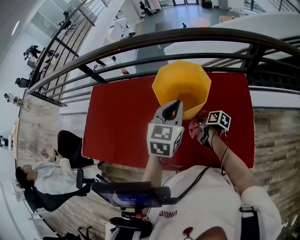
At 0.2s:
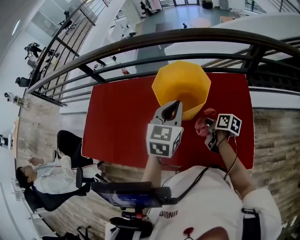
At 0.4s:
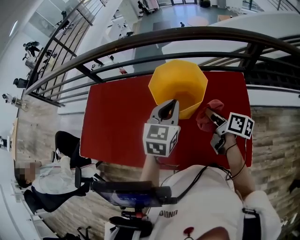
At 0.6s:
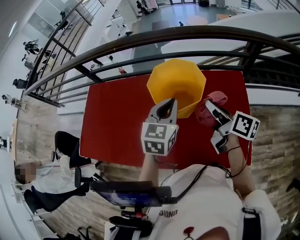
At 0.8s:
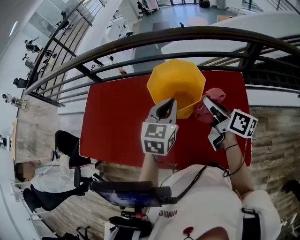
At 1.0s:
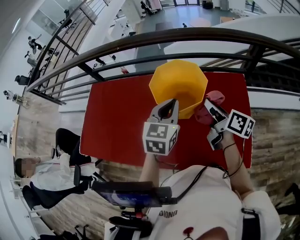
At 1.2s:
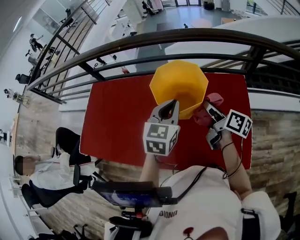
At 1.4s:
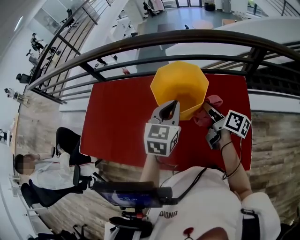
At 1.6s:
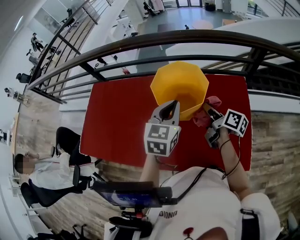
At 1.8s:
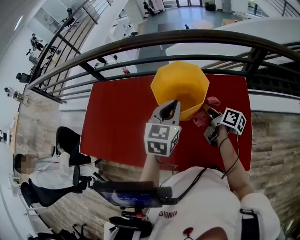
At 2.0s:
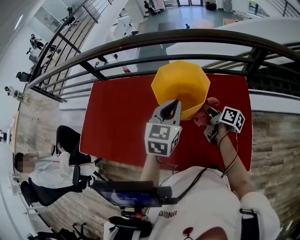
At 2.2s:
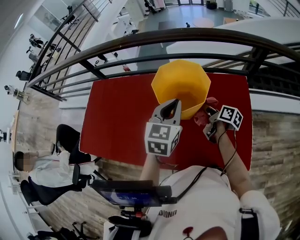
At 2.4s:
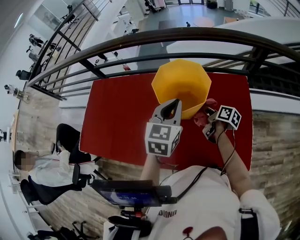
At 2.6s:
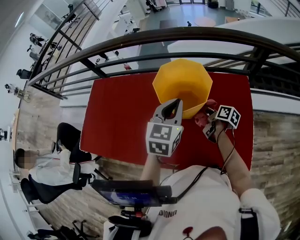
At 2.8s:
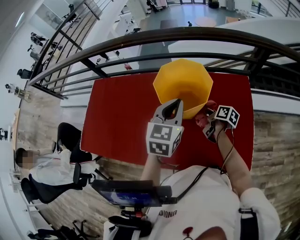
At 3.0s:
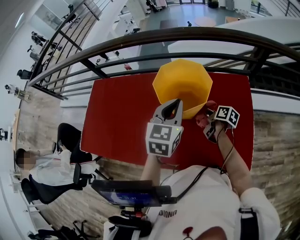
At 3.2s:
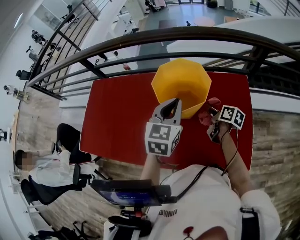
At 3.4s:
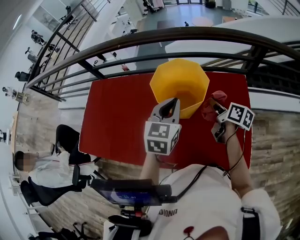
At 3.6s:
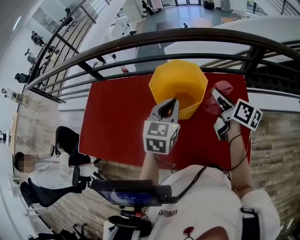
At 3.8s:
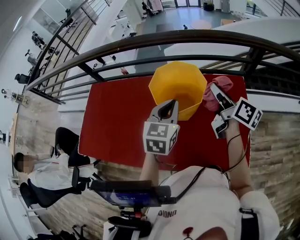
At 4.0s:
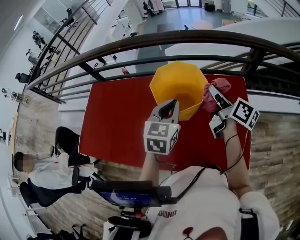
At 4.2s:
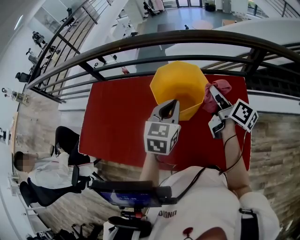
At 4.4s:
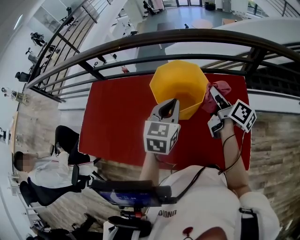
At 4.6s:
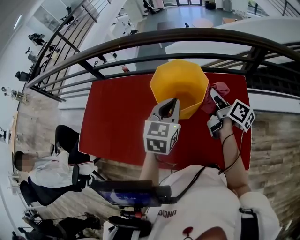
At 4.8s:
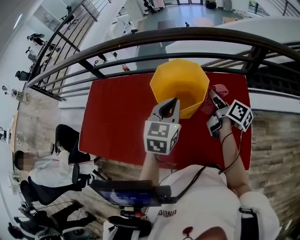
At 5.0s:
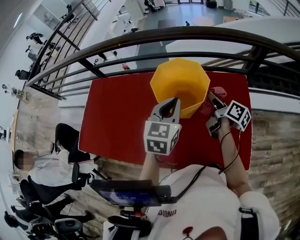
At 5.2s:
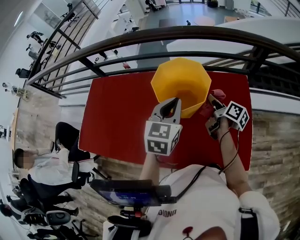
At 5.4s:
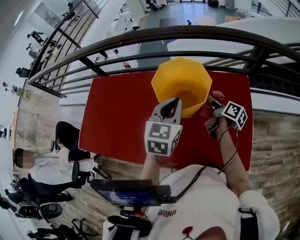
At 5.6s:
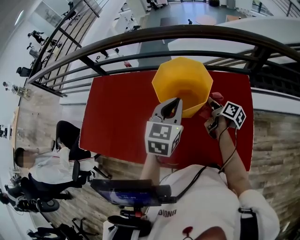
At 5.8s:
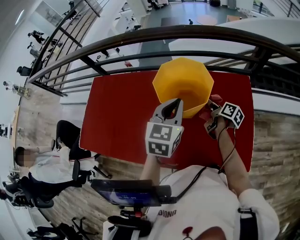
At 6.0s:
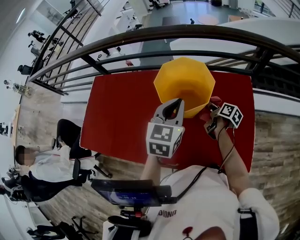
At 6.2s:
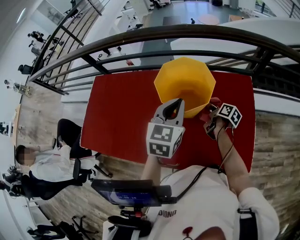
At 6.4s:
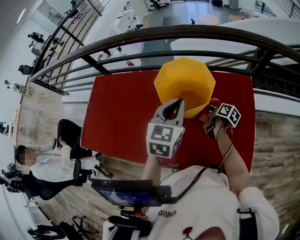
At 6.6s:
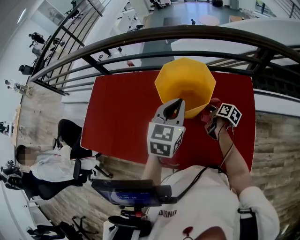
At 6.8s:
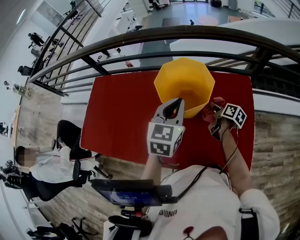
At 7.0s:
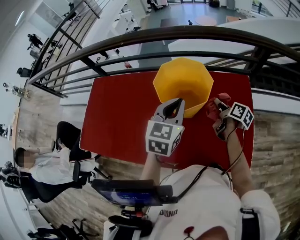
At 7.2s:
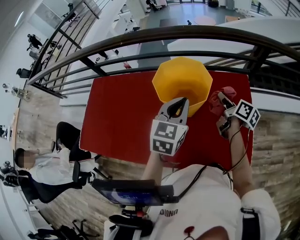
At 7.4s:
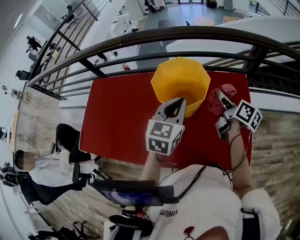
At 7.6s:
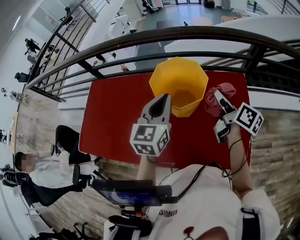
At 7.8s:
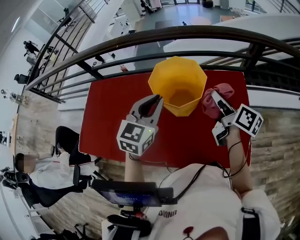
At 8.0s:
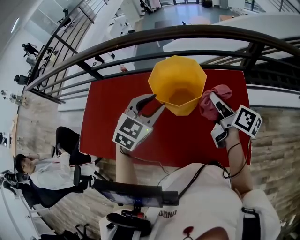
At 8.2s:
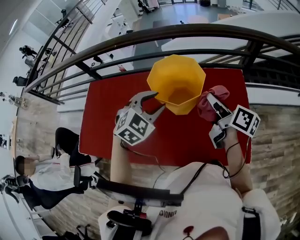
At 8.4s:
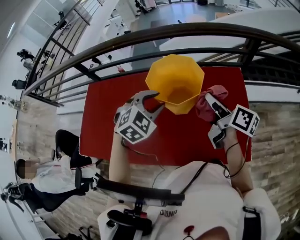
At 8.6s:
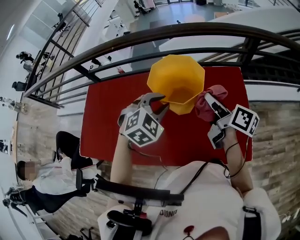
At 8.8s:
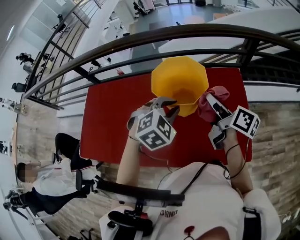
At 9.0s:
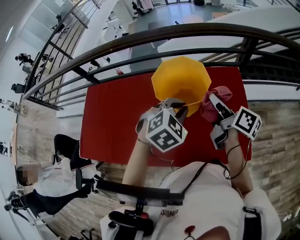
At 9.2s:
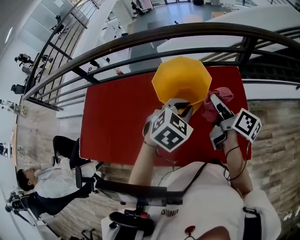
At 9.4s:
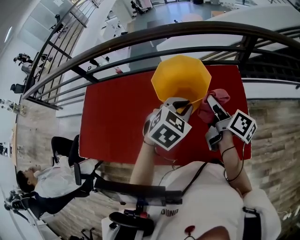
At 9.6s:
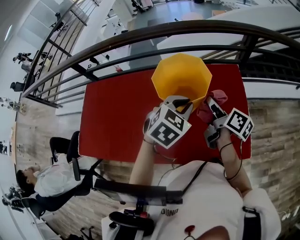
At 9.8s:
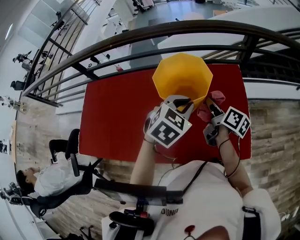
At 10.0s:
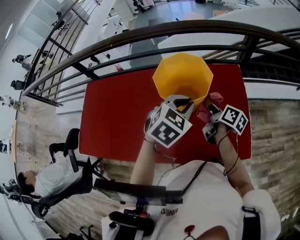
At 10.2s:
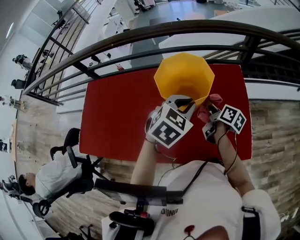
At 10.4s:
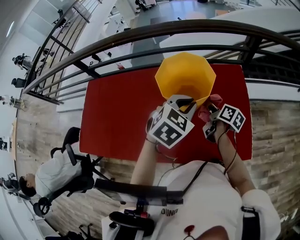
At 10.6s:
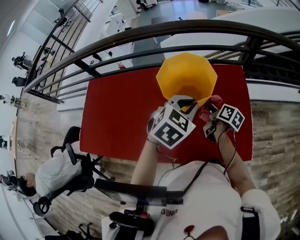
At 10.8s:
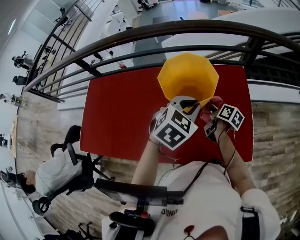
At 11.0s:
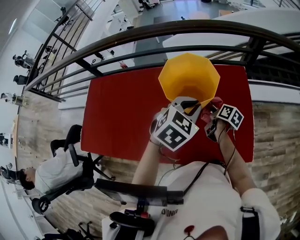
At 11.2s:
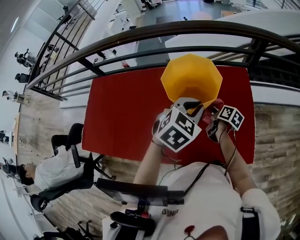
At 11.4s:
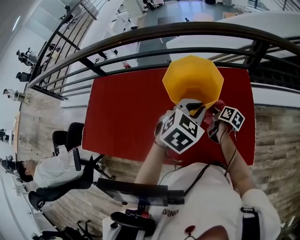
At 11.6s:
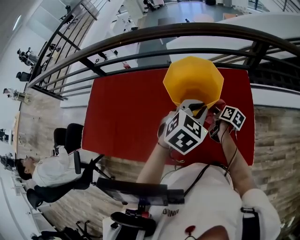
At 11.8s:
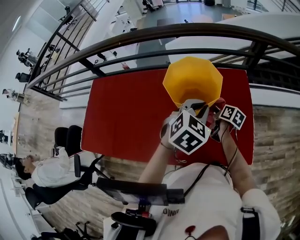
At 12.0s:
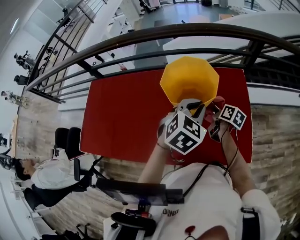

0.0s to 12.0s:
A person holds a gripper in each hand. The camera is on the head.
0.0s to 1.6s: The right gripper moves upward, some 15 cm, and changes its angle by roughly 30 degrees.
1.6s to 3.0s: The right gripper heads downward, covering roughly 15 cm.
3.0s to 4.4s: The right gripper travels upward by some 20 cm, and turns by about 30 degrees.
4.4s to 6.0s: The right gripper goes approximately 20 cm downward, and rotates about 30 degrees.
6.0s to 7.6s: The right gripper moves upward, about 20 cm, and turns by roughly 30 degrees.
7.6s to 9.0s: The left gripper is displaced to the right and downward by roughly 10 cm, tips its fingers downward by roughly 40 degrees, and opens and closes again.
9.0s to 10.4s: The right gripper goes approximately 15 cm downward.

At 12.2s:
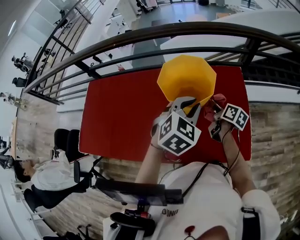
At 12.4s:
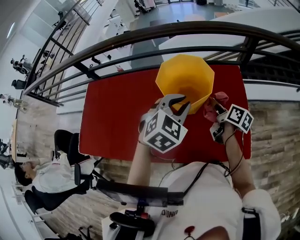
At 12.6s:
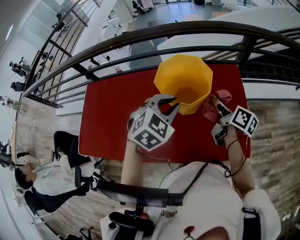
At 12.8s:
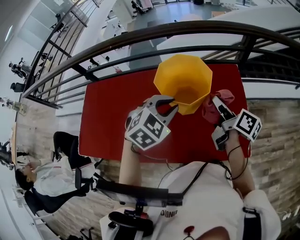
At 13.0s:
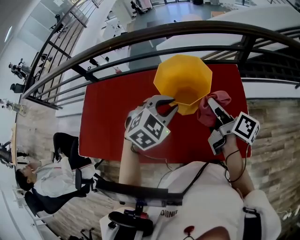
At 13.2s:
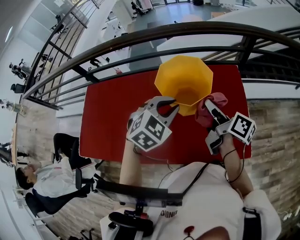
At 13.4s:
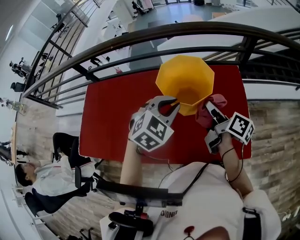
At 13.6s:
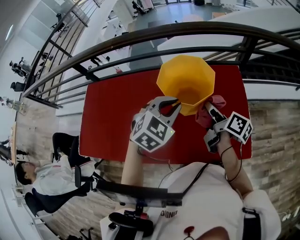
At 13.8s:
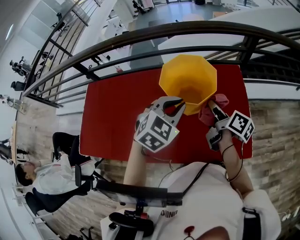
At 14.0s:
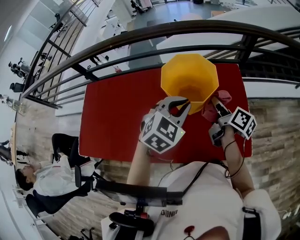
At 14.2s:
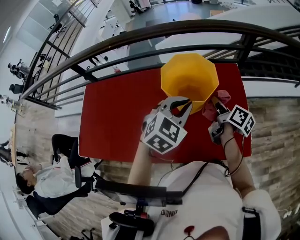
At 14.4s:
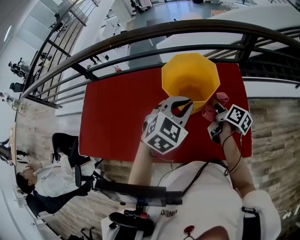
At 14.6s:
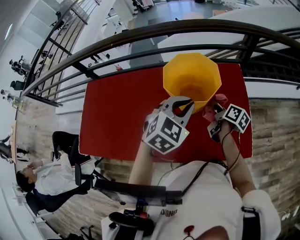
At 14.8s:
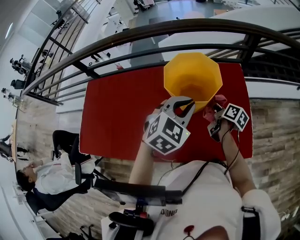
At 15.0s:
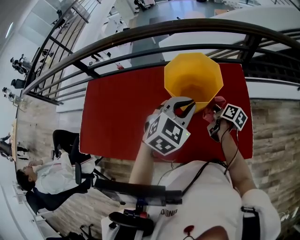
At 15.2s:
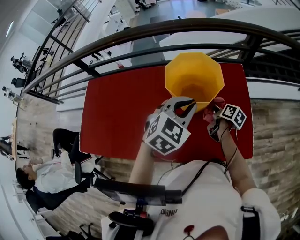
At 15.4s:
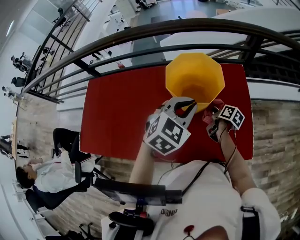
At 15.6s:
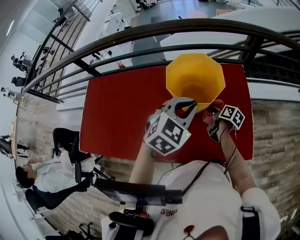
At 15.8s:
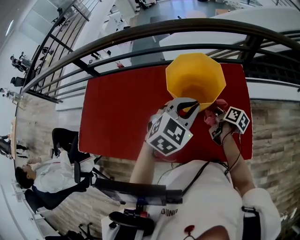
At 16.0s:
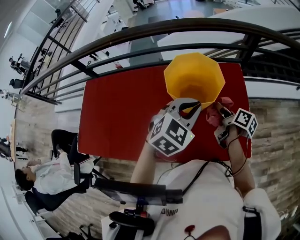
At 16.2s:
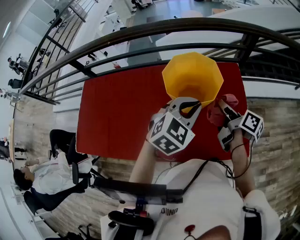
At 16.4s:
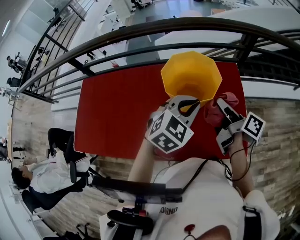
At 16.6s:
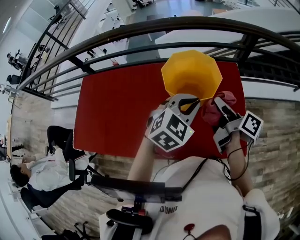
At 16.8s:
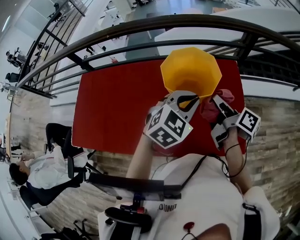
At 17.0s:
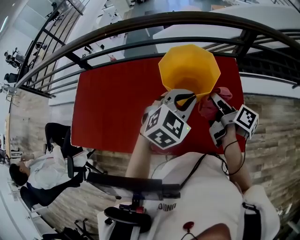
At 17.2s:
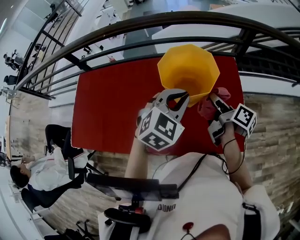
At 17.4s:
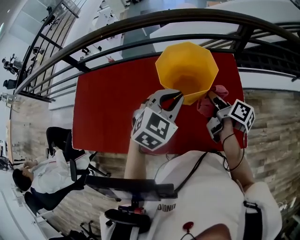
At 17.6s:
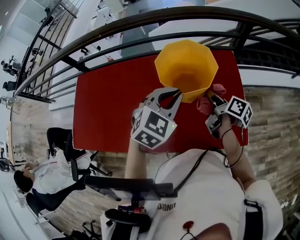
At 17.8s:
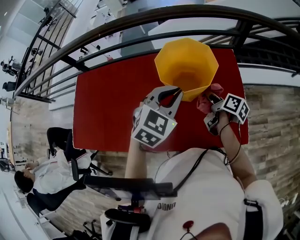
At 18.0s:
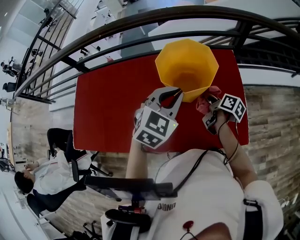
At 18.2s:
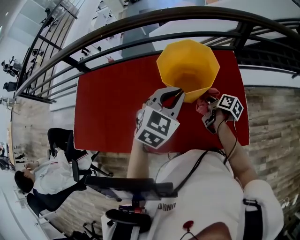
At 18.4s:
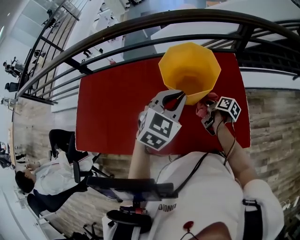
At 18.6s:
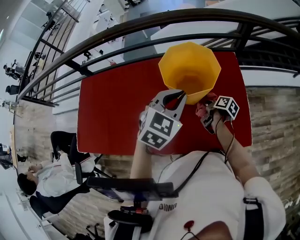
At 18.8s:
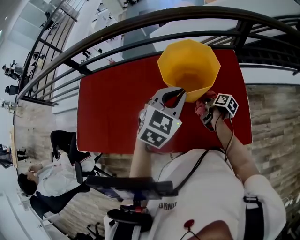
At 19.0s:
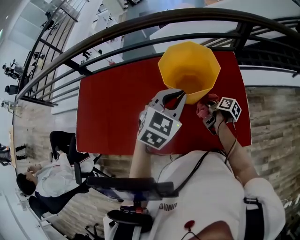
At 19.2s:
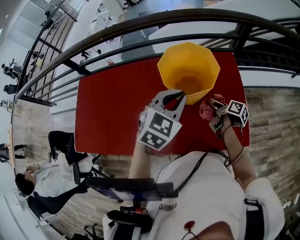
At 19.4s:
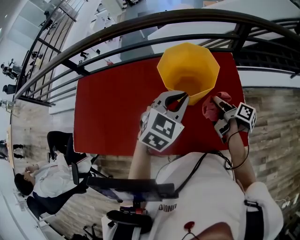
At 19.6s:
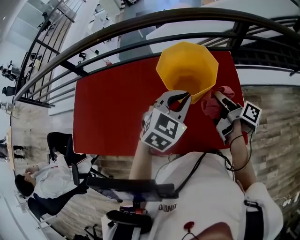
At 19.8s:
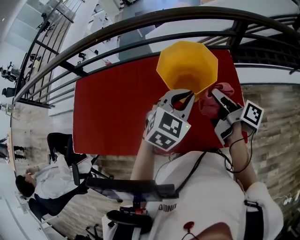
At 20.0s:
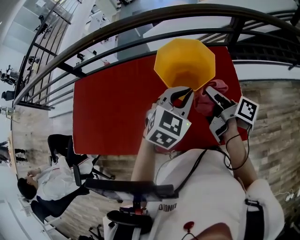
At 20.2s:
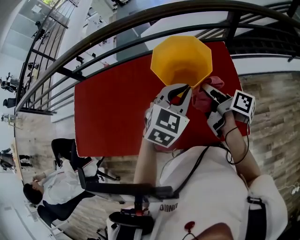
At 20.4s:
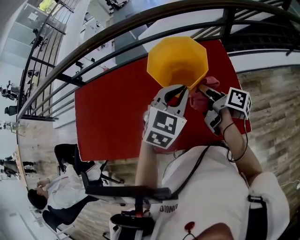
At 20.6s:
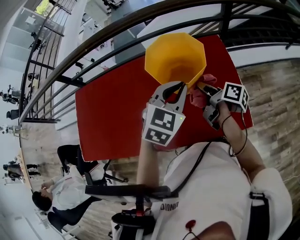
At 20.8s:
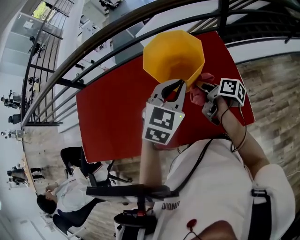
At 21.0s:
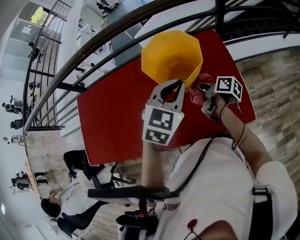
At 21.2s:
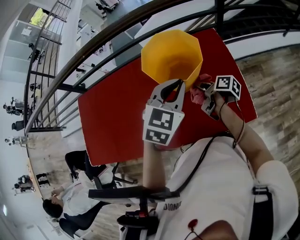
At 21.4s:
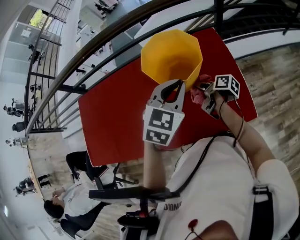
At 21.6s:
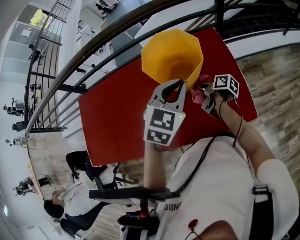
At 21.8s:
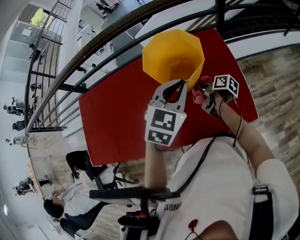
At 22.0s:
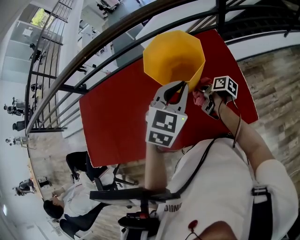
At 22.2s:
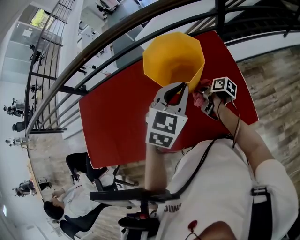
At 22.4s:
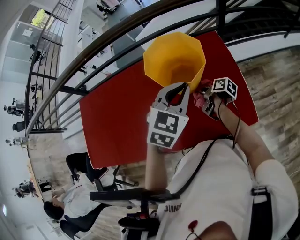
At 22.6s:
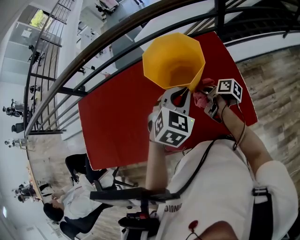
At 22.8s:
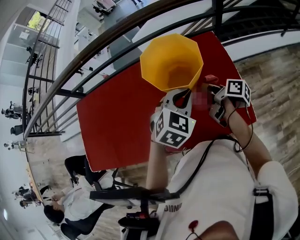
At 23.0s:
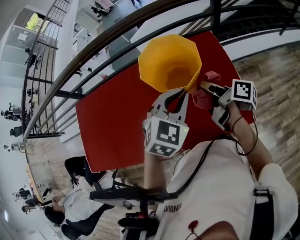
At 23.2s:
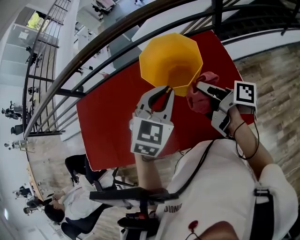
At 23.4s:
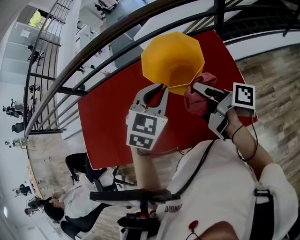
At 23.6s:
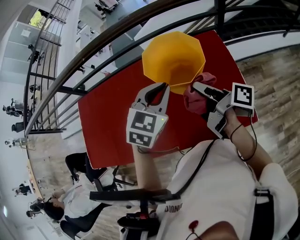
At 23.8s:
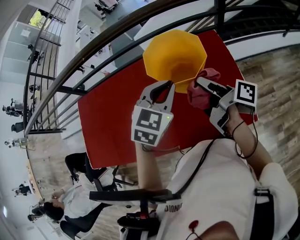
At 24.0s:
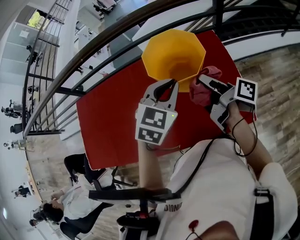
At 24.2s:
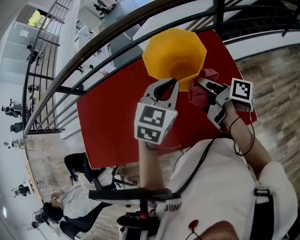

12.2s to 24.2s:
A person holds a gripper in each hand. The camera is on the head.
12.2s to 13.8s: The right gripper goes approximately 10 cm upward, while the left gripper is displaced to the left by roughly 5 cm.
13.8s to 15.2s: The right gripper moves downward, roughly 15 cm.
15.2s to 16.6s: The right gripper travels upward by some 20 cm, and turns by roughly 30 degrees.
16.6s to 18.2s: The right gripper heads downward, covering some 20 cm, and swivels about 20 degrees.
18.2s to 19.8s: The right gripper is displaced upward by some 15 cm, and turns by about 20 degrees.
19.8s to 21.2s: The right gripper moves downward, about 15 cm.
21.2s to 22.6s: The grippers make only small movements.
22.6s to 24.2s: The left gripper shifts by some 5 cm. The right gripper heads upward, covering approximately 15 cm, and rotates roughly 20 degrees.
